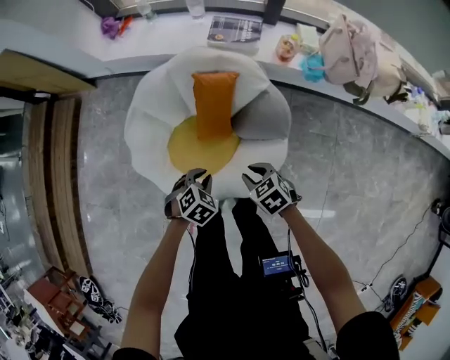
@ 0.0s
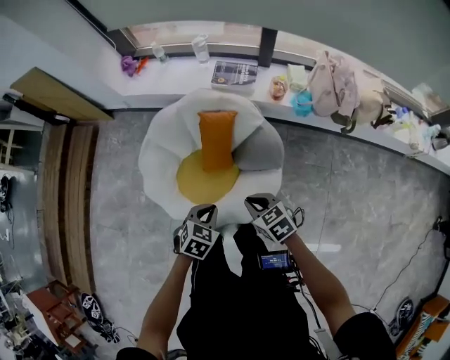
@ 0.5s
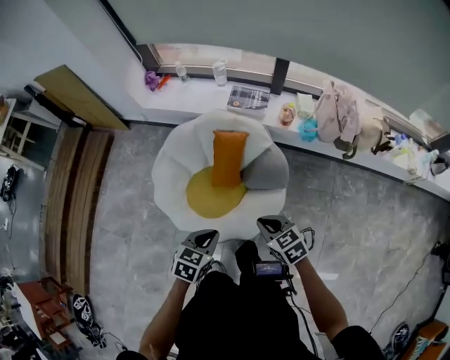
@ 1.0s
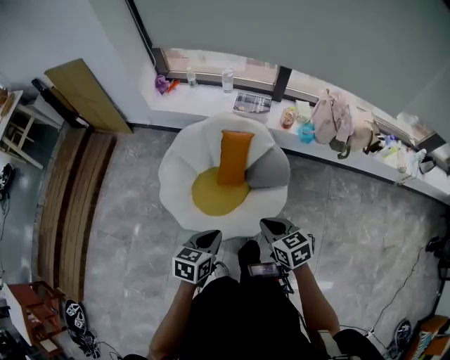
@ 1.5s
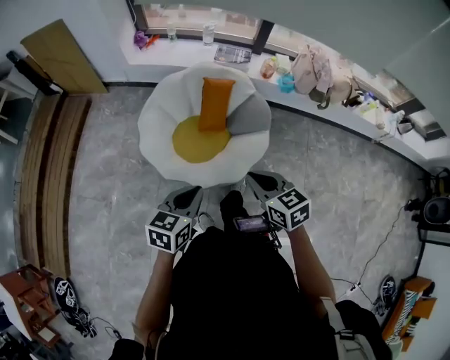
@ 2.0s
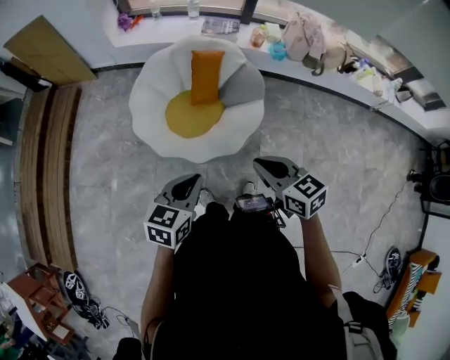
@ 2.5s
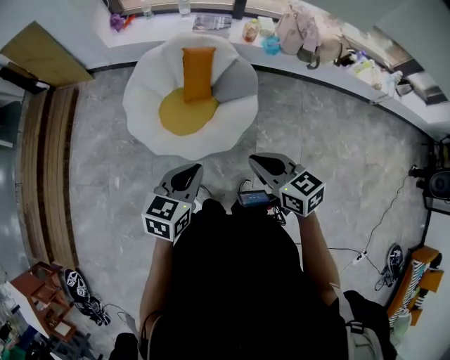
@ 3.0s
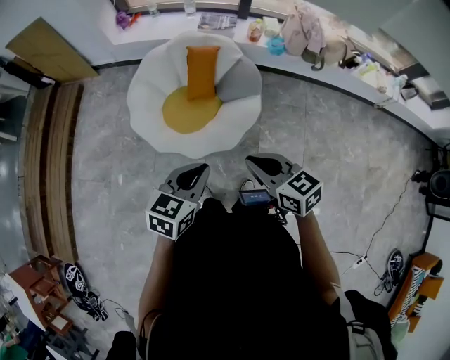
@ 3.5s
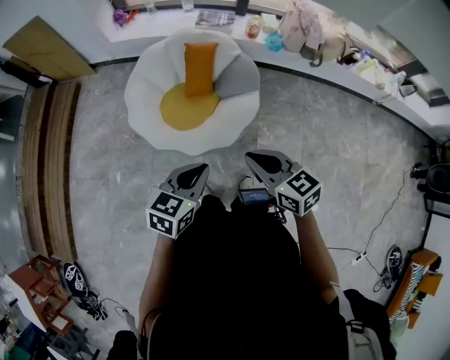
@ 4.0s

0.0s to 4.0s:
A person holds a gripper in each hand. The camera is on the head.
0.0s to 2.0s: The grippers both shift upward and backward by about 40 cm. The right gripper changes its angle by roughly 30 degrees, and closes up; the left gripper tips its fingers upward by some 40 degrees.
2.0s to 4.0s: The right gripper shifts some 10 cm backward and to the right; the left gripper is displaced to the right and backward by approximately 10 cm.

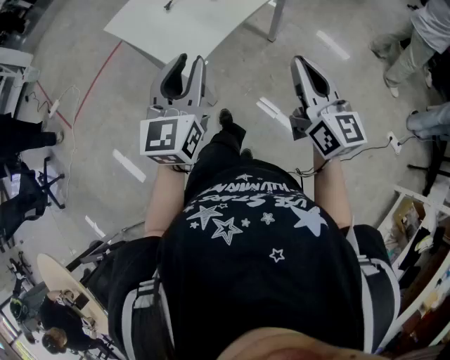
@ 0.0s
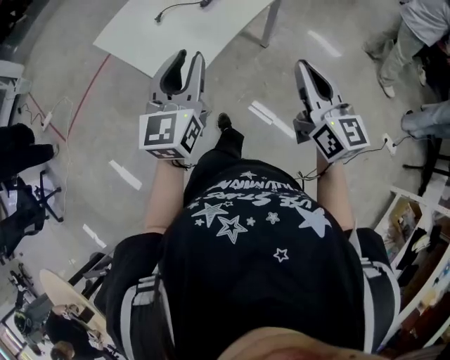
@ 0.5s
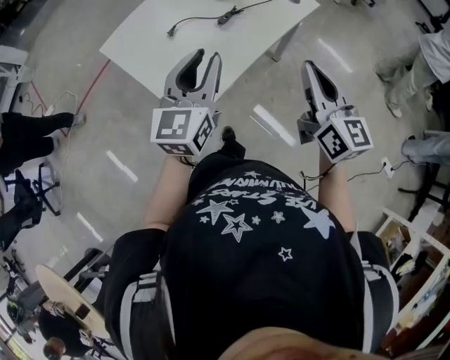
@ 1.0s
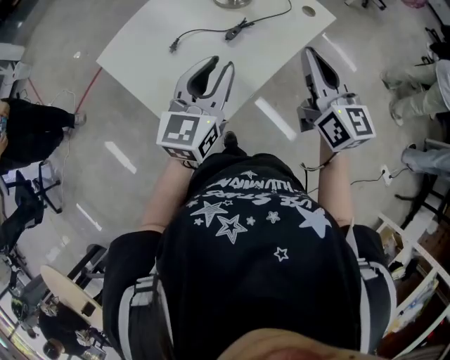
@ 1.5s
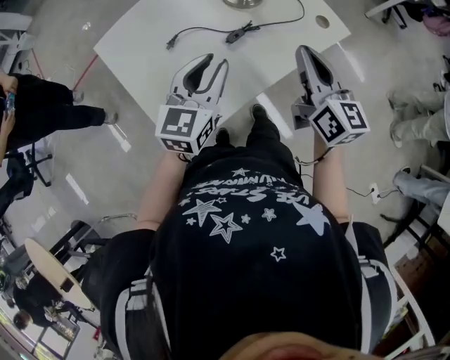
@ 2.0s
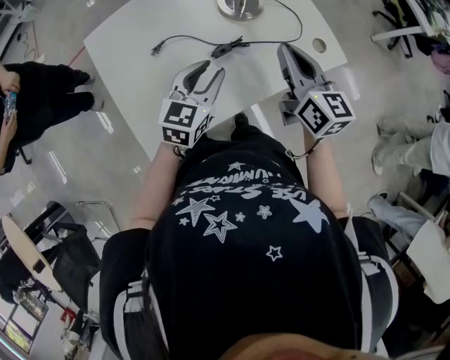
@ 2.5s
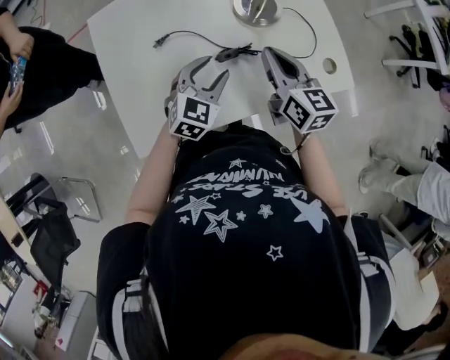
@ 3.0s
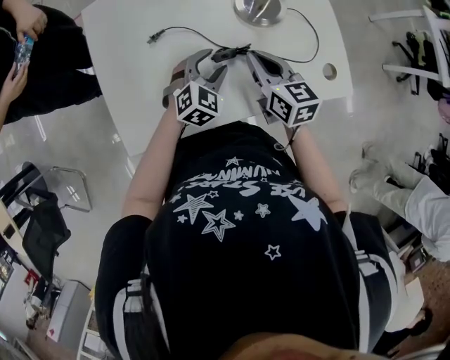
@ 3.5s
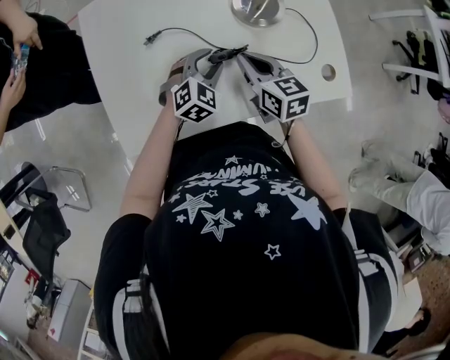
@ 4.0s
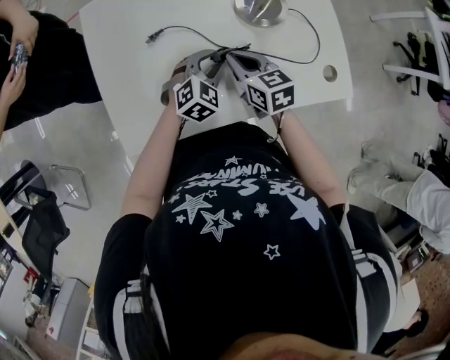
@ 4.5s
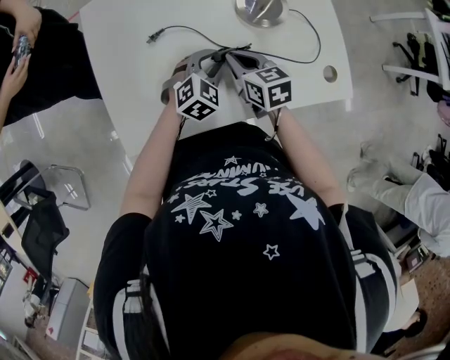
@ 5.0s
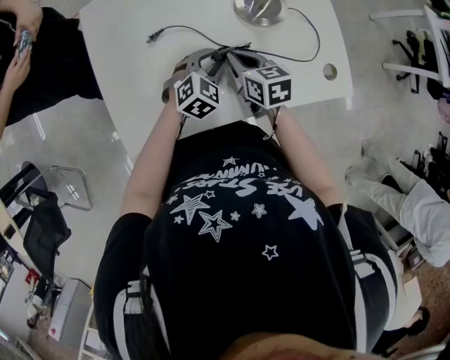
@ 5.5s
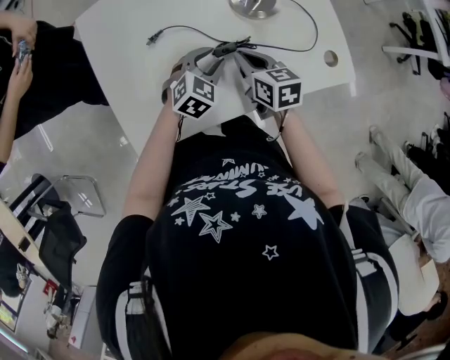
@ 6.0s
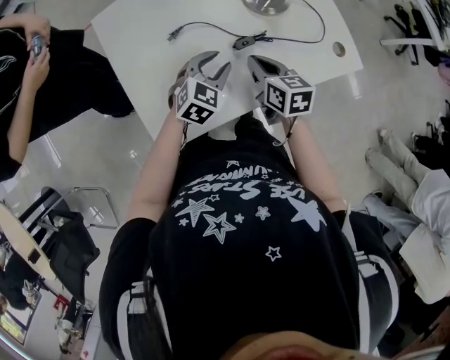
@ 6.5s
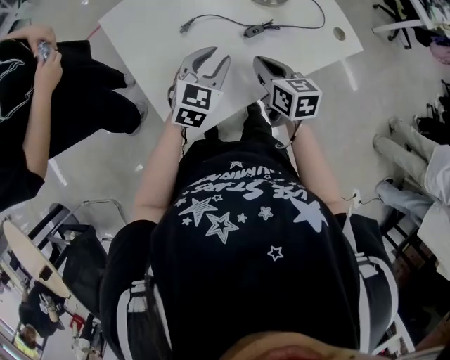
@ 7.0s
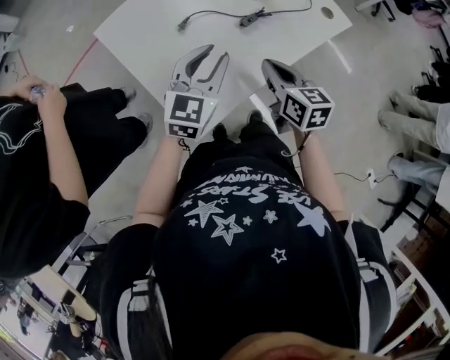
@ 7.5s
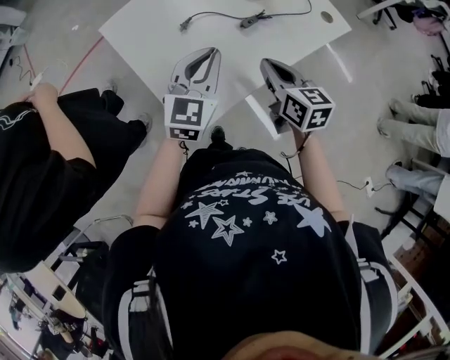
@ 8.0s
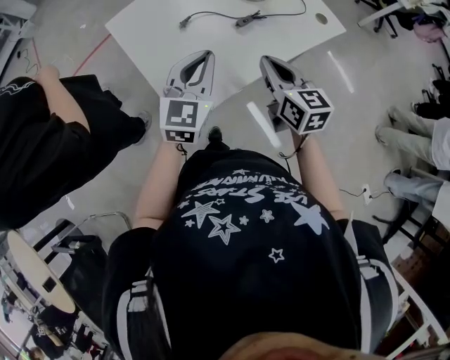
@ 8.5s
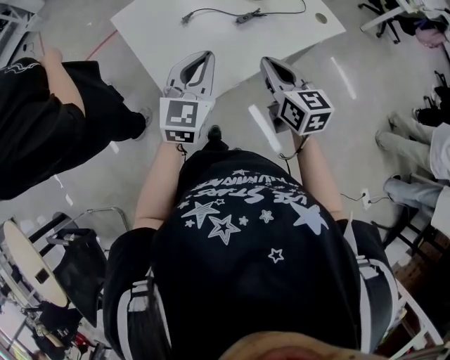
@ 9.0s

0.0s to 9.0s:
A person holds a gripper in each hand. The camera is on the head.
0.0s to 2.0s: The two grippers go some 40 cm forward.
2.0s to 4.5s: Both grippers move downward, roughly 20 cm. The left gripper points its fingers some 30 degrees further downward. The right gripper changes its angle by roughly 50 degrees.
4.5s to 7.0s: The right gripper travels backward, to the left and upward by approximately 15 cm, and changes its angle by roughly 30 degrees; the left gripper shifts about 20 cm to the left, upward and backward, and turns by some 20 degrees.
7.0s to 9.0s: The grippers both shift backward and upward by approximately 15 cm. The left gripper closes its fingers.

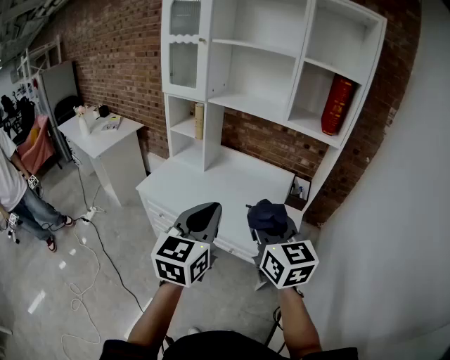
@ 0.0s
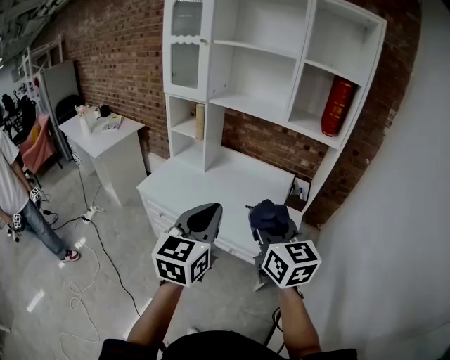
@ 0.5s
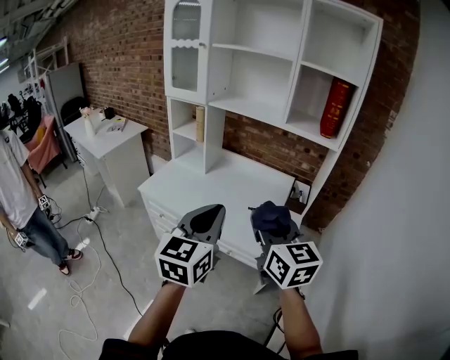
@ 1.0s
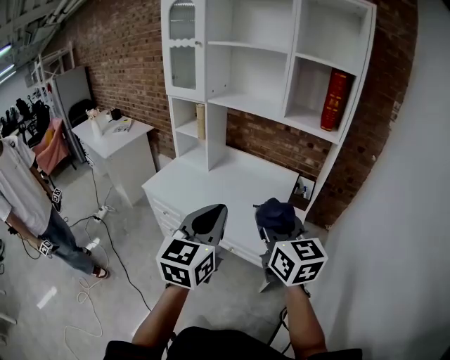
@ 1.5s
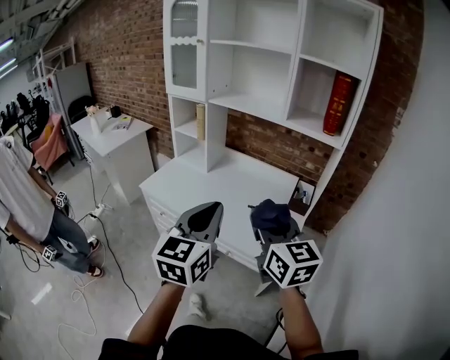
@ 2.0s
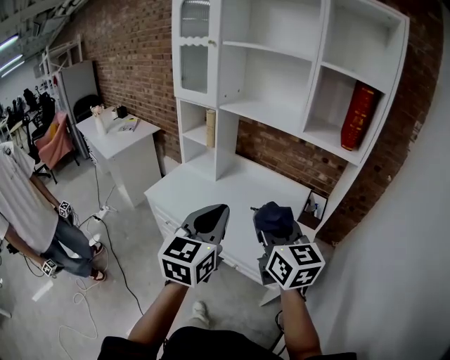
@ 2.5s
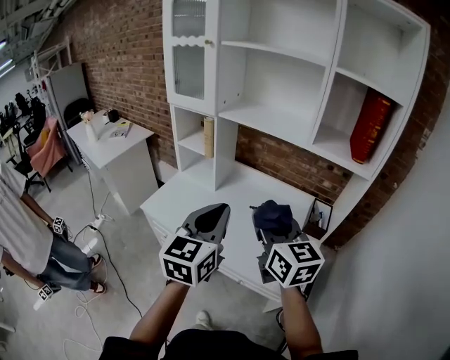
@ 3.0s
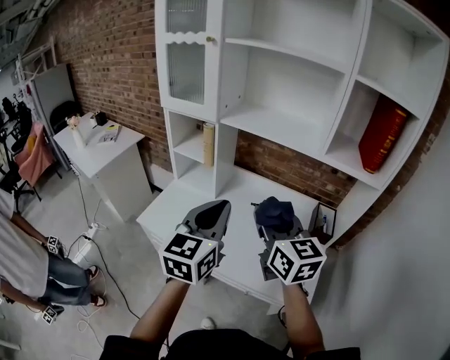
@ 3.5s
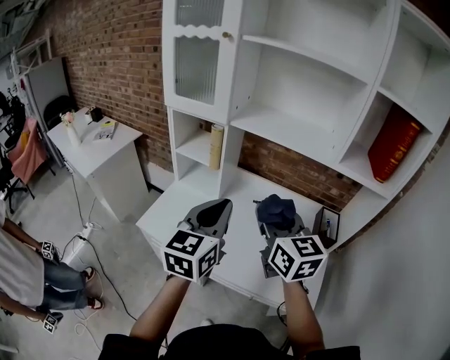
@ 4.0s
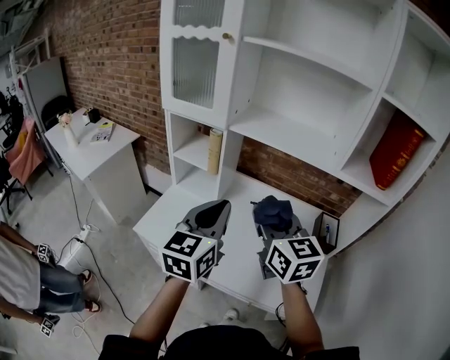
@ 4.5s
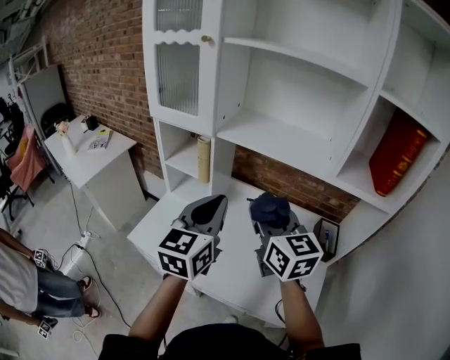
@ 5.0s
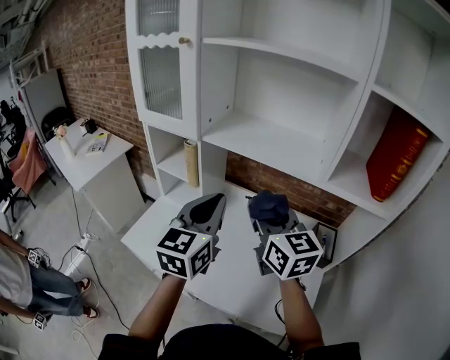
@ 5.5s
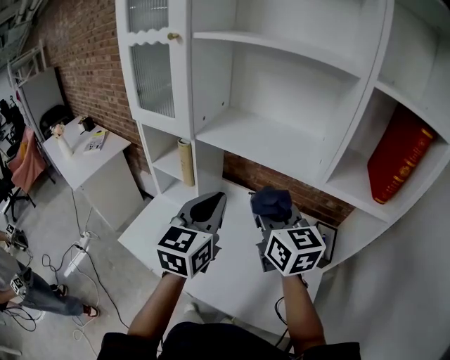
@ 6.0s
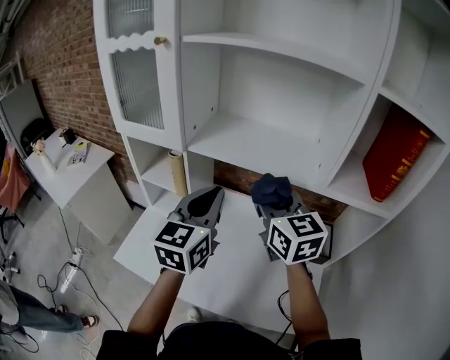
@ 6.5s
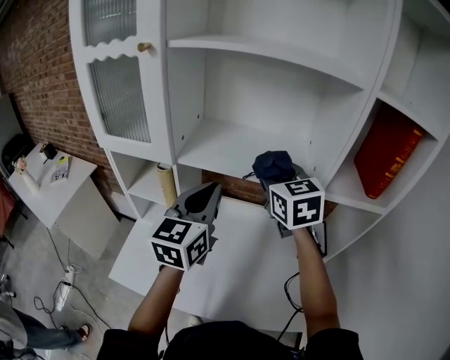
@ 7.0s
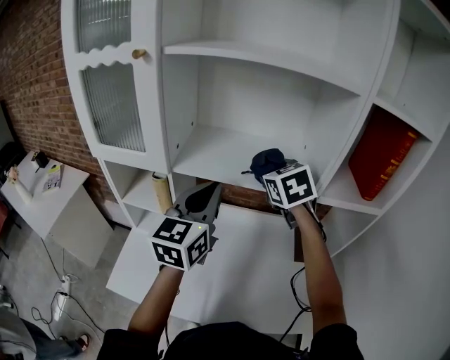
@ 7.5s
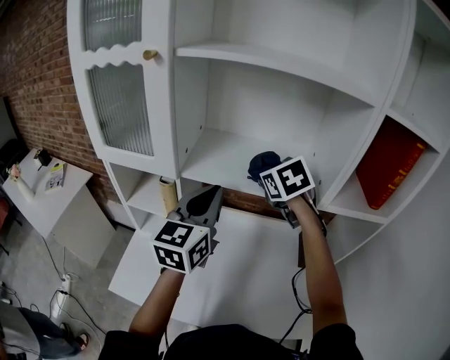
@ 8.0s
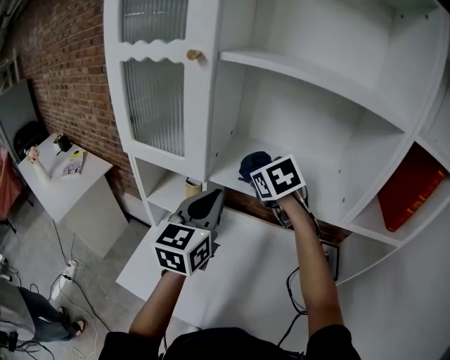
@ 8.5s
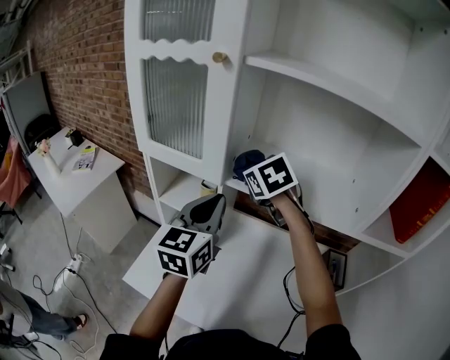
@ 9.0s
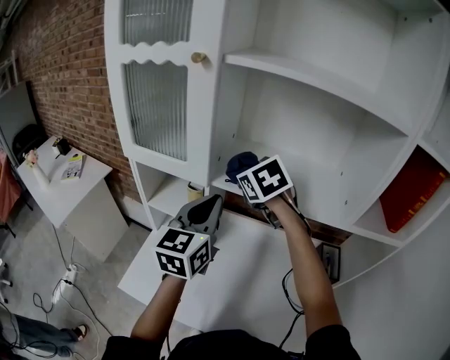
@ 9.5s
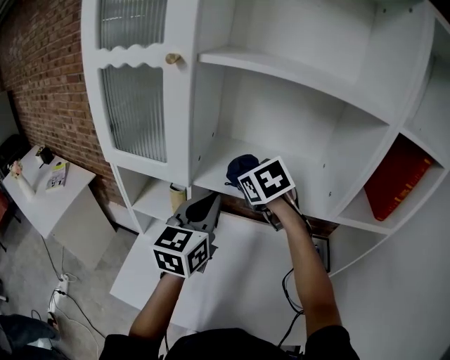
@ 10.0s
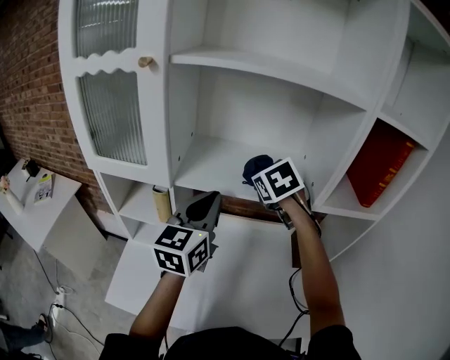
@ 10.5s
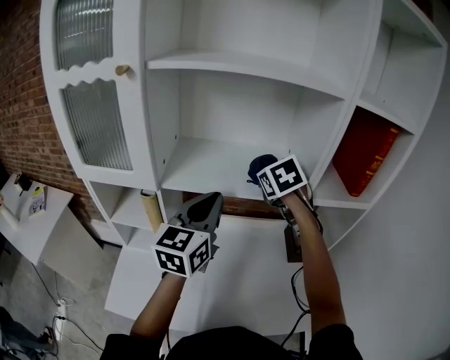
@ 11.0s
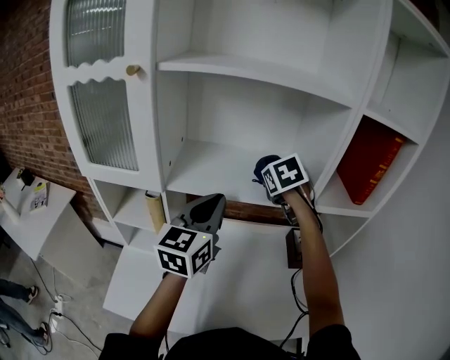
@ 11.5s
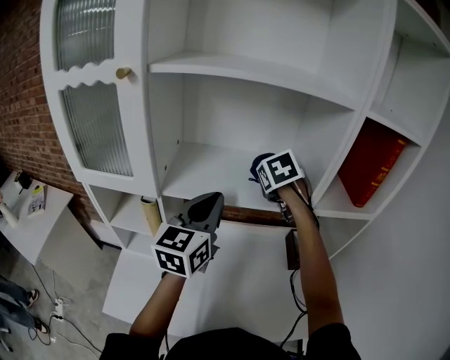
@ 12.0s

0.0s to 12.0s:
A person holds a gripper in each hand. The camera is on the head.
0.0s to 2.0s: The grippers both shift to the right by some 5 cm.
2.0s to 4.0s: The two grippers go approximately 35 cm forward and to the left.
4.0s to 6.0s: The two grippers go approximately 15 cm forward and to the right.
6.0s to 8.0s: The right gripper moves forward, approximately 20 cm, and tips its fingers downward by some 40 degrees; the left gripper is displaced forward by about 10 cm.
8.0s to 10.0s: The right gripper shifts approximately 10 cm to the left.
10.0s to 12.0s: The right gripper travels to the right and forward by about 20 cm, and swivels some 20 degrees. Meanwhile the left gripper is displaced to the right by some 5 cm.

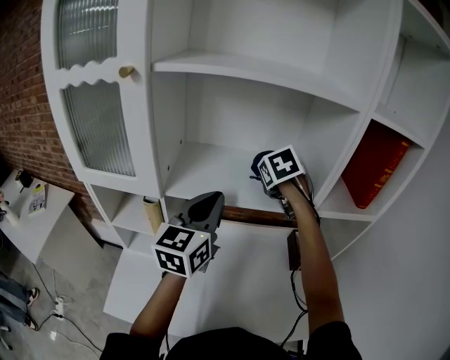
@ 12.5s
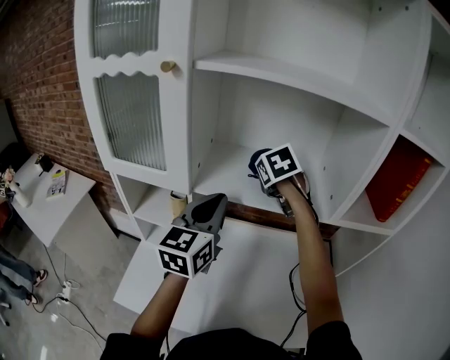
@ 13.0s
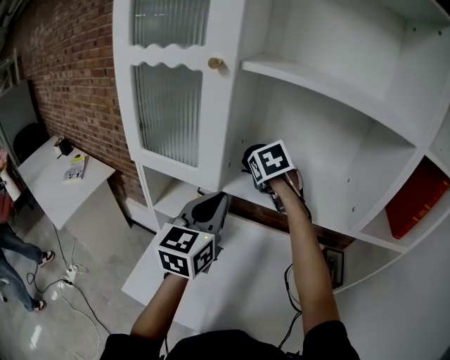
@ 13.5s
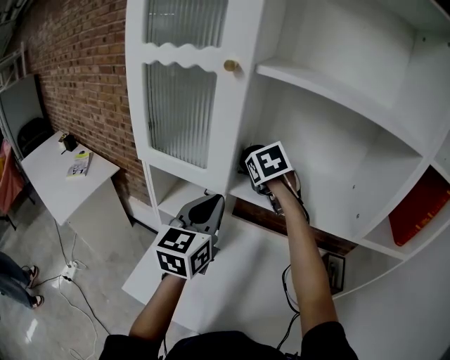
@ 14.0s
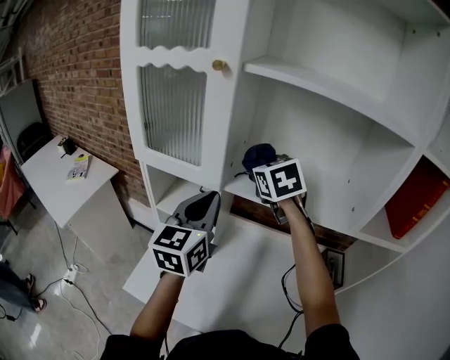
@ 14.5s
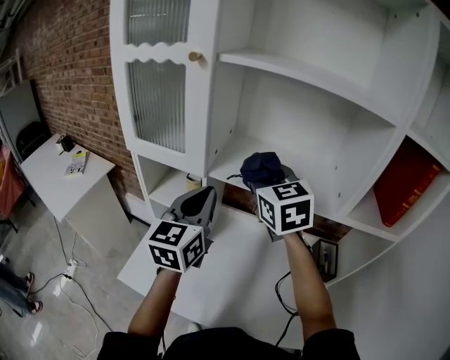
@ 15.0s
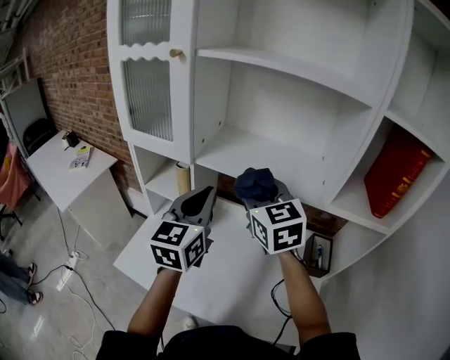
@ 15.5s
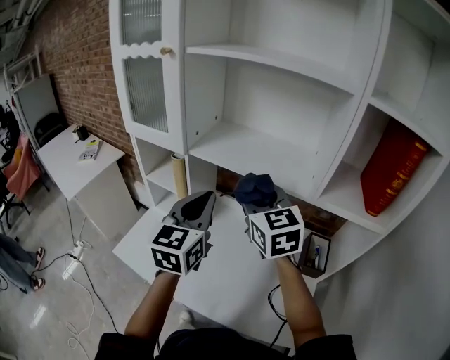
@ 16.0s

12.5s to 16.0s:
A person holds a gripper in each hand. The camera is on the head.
12.5s to 14.5s: The left gripper heads to the left, covering approximately 15 cm, while the right gripper heads to the left, covering roughly 20 cm, and changes its angle by about 30 degrees.
14.5s to 16.0s: The left gripper goes approximately 15 cm to the right and backward. Meanwhile the right gripper travels backward and to the right by approximately 20 cm, and swivels approximately 20 degrees.
